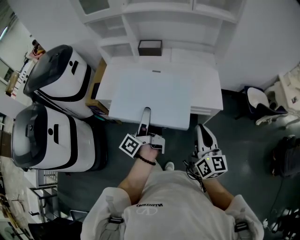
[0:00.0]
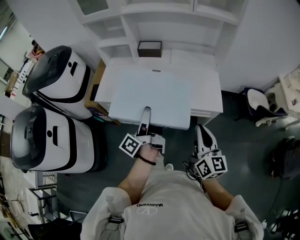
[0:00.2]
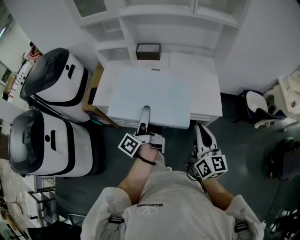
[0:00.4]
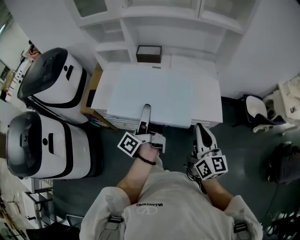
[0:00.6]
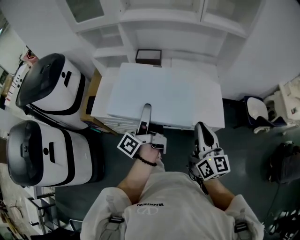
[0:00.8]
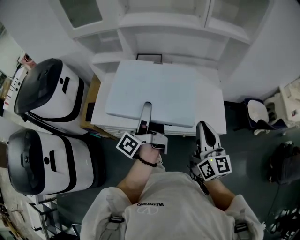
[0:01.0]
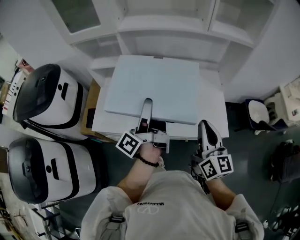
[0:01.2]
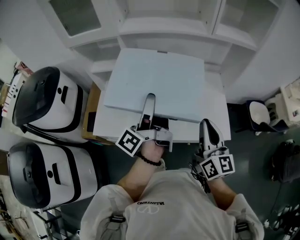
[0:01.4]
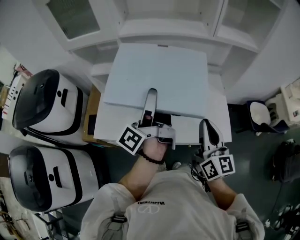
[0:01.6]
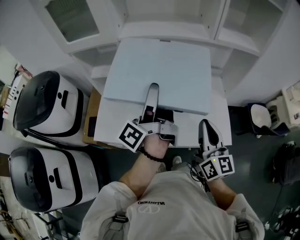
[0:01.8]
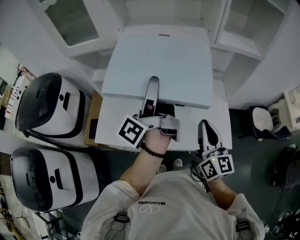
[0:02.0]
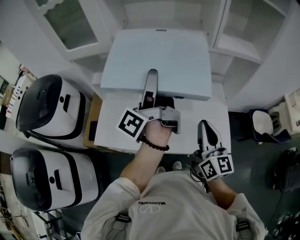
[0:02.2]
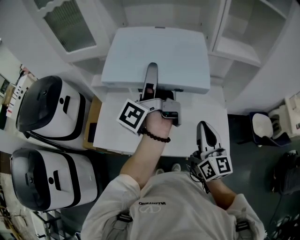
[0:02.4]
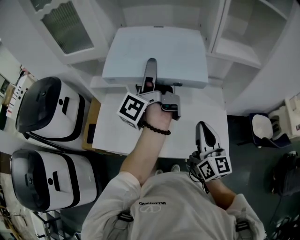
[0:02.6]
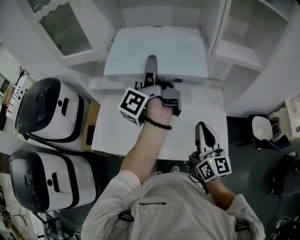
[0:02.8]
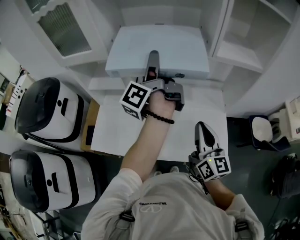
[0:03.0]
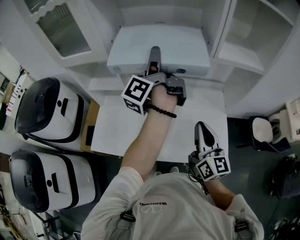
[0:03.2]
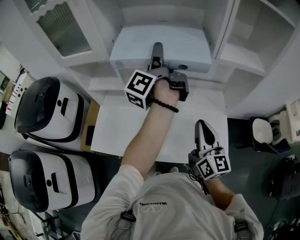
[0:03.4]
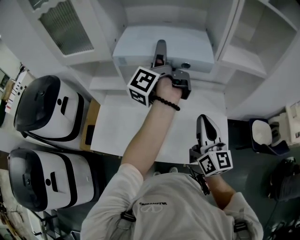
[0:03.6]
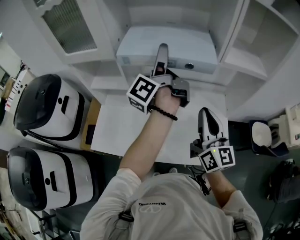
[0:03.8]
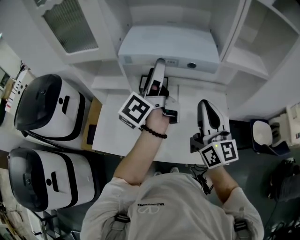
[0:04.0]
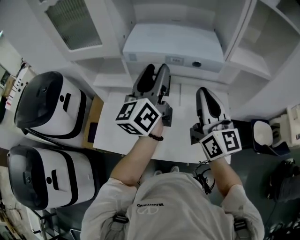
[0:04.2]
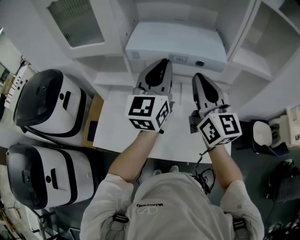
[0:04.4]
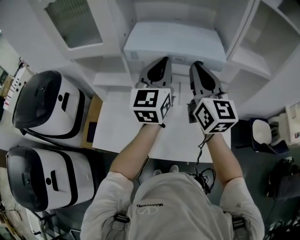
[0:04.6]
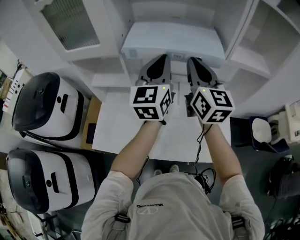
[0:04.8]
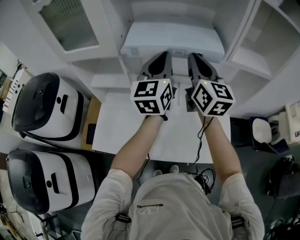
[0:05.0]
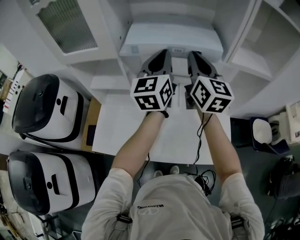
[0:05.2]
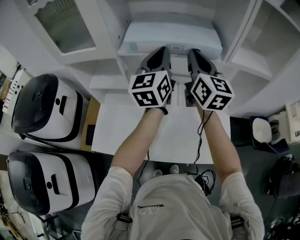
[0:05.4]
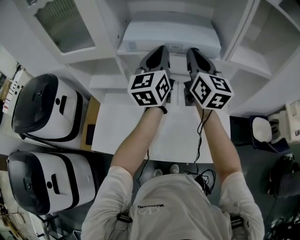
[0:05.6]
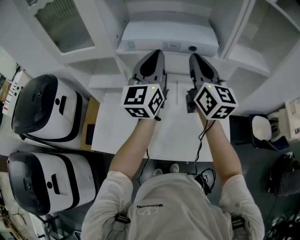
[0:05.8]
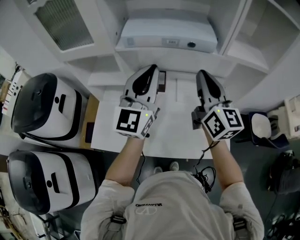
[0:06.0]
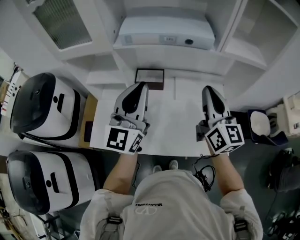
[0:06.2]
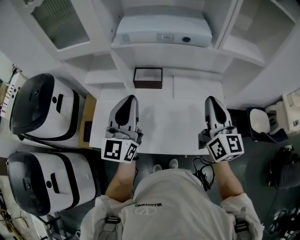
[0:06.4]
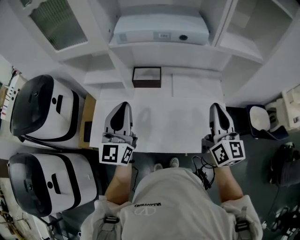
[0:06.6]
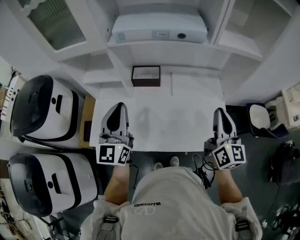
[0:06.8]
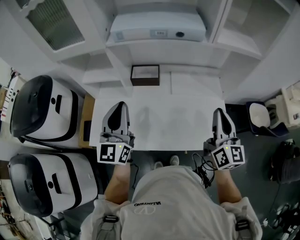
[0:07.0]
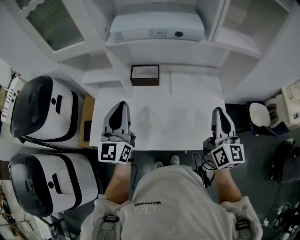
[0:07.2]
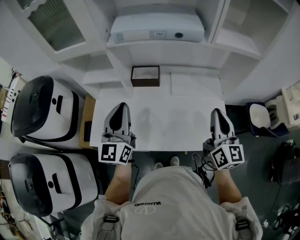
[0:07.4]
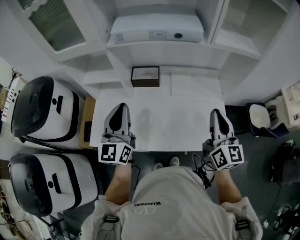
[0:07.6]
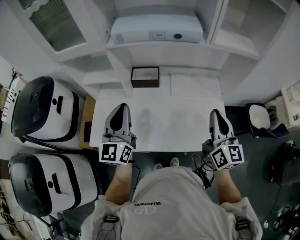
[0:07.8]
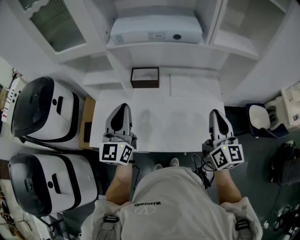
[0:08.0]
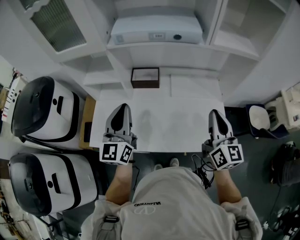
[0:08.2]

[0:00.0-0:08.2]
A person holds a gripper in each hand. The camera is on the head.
0:00.0 to 0:01.6: The right gripper shifts about 25 cm forward, while the left gripper moves forward and upward, about 30 cm.
0:01.6 to 0:03.2: The left gripper is displaced forward by about 20 cm. Meanwhile the right gripper travels forward by about 10 cm.
0:03.2 to 0:05.0: The left gripper goes backward and returns, approximately 5 cm each way, rotates around the line of its fingers by about 70 degrees, clockwise from behind, and closes its fingers. The right gripper moves forward and upward, roughly 25 cm.
0:05.0 to 0:06.6: The right gripper moves backward, to the right and downward, approximately 25 cm; the left gripper is displaced backward, to the left and downward by roughly 20 cm.
0:06.6 to 0:08.2: The grippers stay close to where they were, moving slightly.

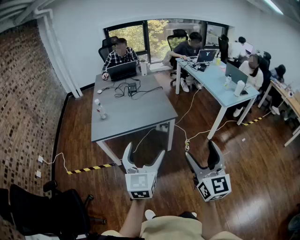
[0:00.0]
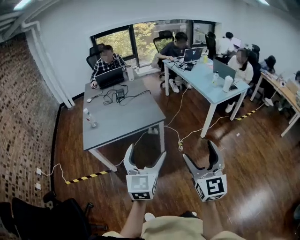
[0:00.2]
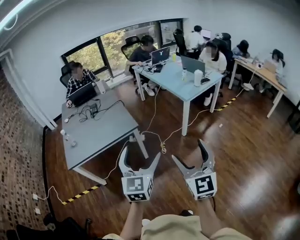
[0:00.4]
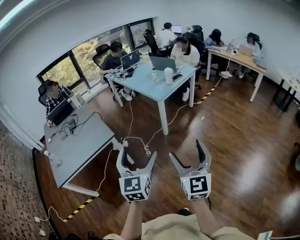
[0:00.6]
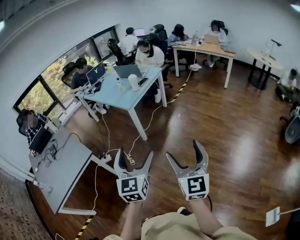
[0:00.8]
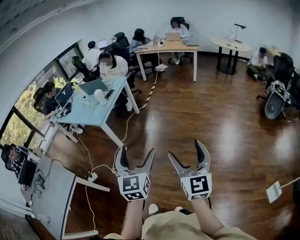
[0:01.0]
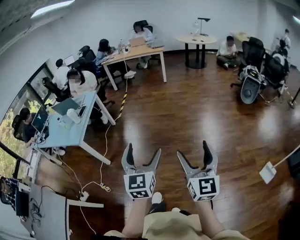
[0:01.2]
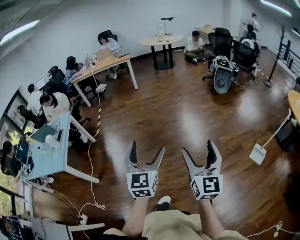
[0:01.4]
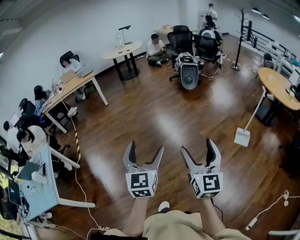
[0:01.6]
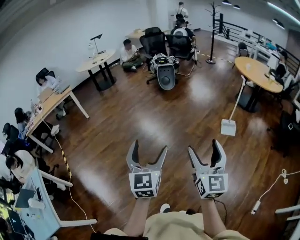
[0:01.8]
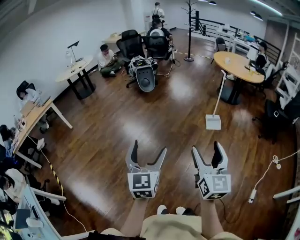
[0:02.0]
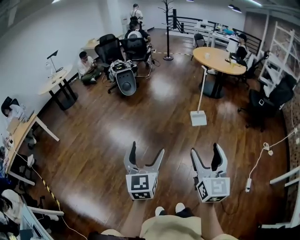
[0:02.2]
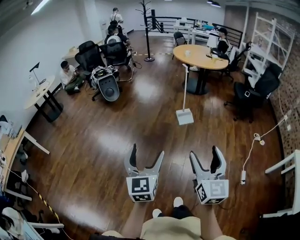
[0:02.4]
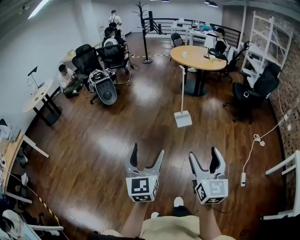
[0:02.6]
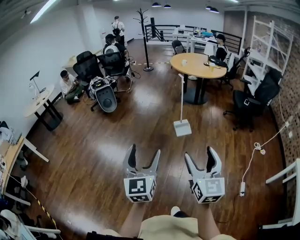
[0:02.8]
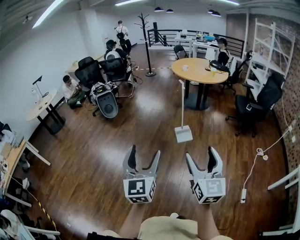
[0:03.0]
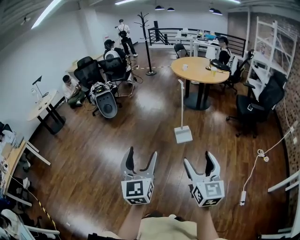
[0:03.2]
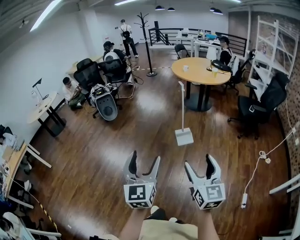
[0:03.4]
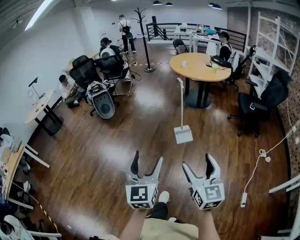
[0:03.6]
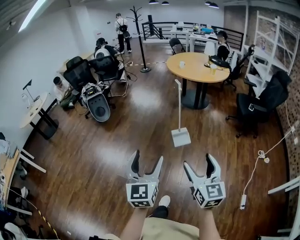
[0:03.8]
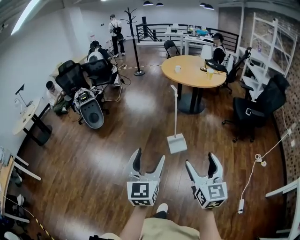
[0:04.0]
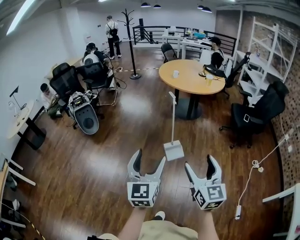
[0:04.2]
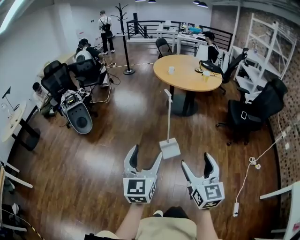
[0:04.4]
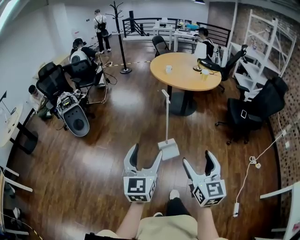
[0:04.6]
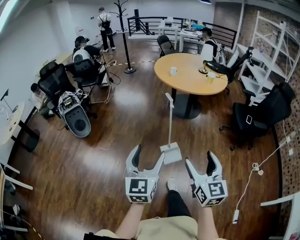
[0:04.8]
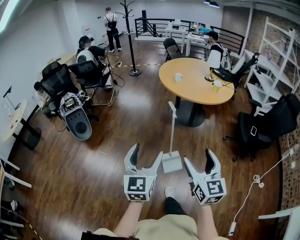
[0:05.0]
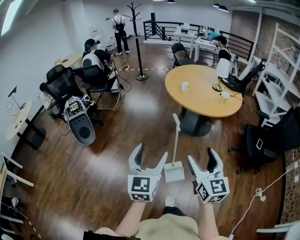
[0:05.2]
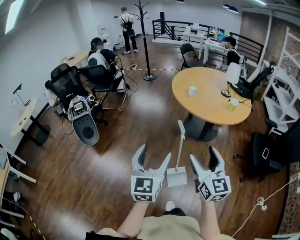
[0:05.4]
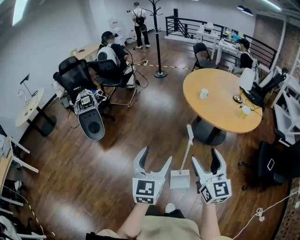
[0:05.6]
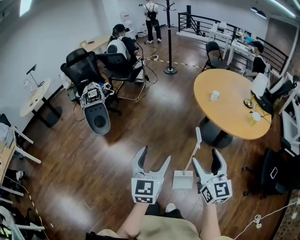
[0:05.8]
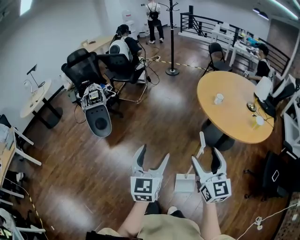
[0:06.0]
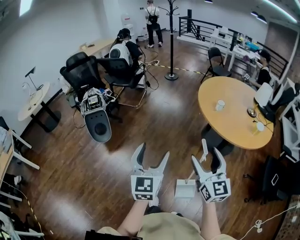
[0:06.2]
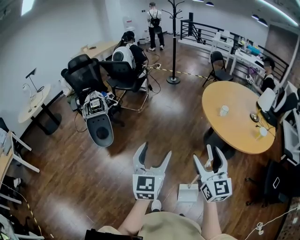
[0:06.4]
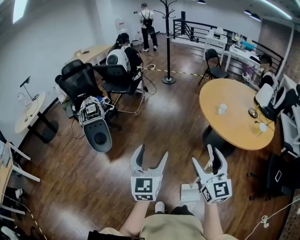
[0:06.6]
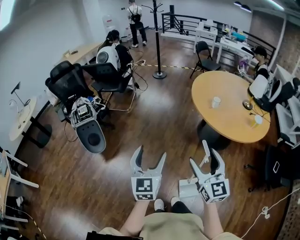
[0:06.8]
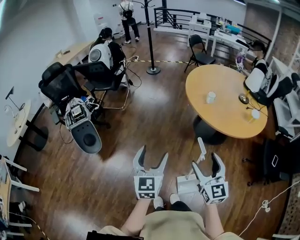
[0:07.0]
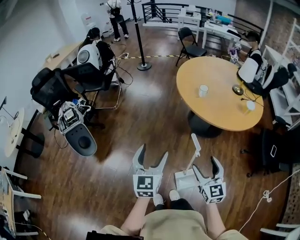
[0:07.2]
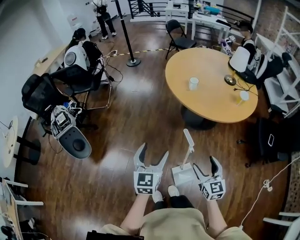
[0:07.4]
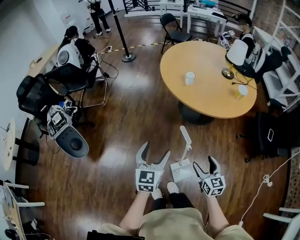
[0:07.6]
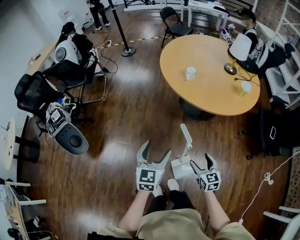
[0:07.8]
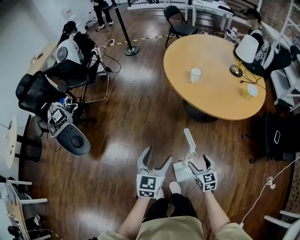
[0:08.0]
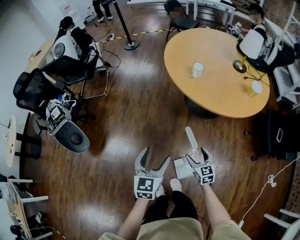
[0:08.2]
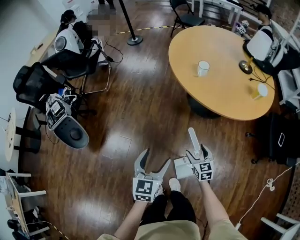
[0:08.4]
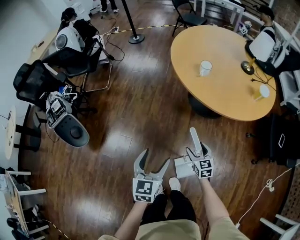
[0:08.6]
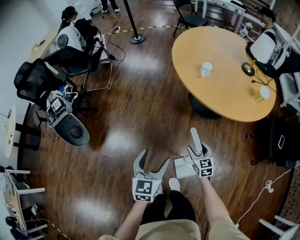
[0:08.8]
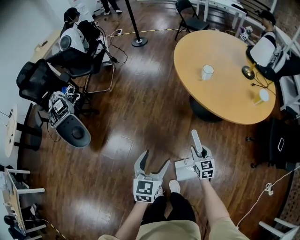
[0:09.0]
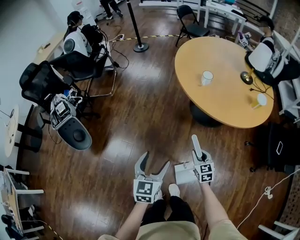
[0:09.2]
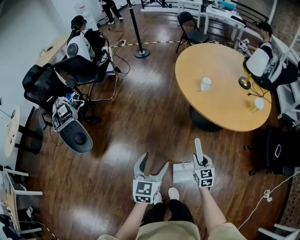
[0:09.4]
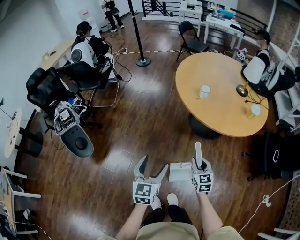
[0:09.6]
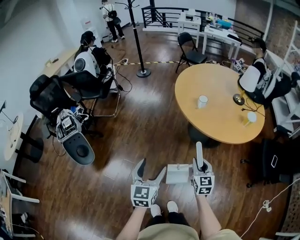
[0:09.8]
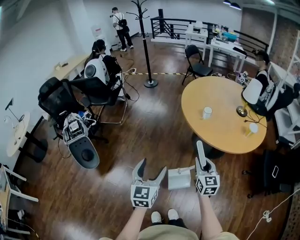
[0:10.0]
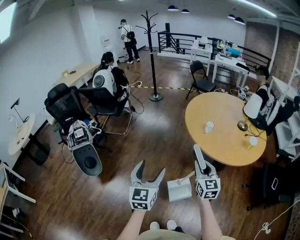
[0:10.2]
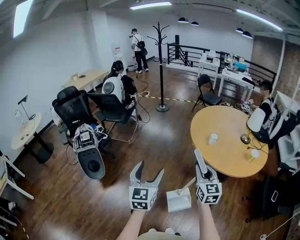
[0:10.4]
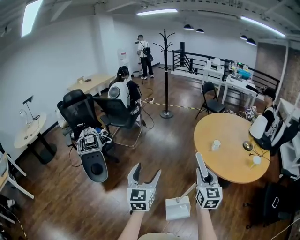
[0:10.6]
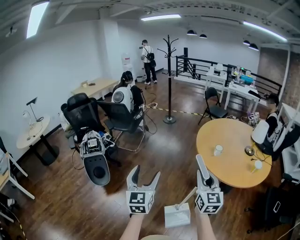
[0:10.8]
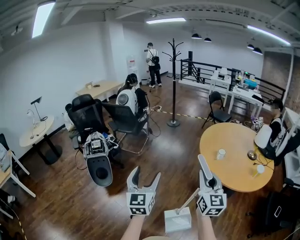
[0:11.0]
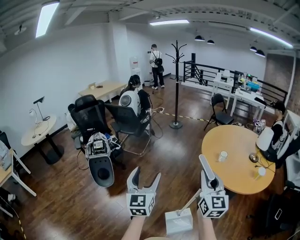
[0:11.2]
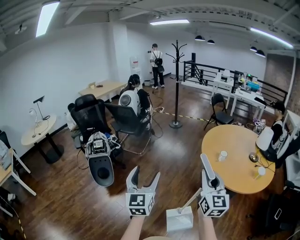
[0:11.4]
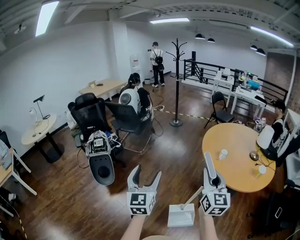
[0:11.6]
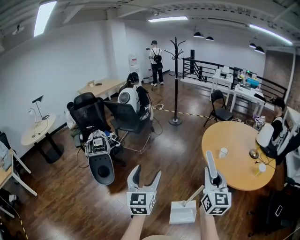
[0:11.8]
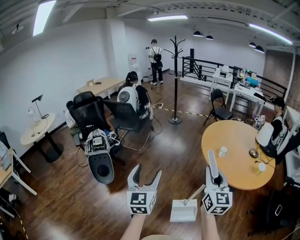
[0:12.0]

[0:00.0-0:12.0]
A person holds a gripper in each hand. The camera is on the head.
0:00.0 to 0:01.6: Both grippers are carried roughly 80 cm. The right gripper rotates roughly 110 degrees, while the left gripper turns by roughly 100 degrees.
0:01.6 to 0:03.0: The left gripper changes place by about 35 cm, and turns by about 40 degrees, while the right gripper shifts by about 35 cm, and swivels approximately 40 degrees.
0:03.0 to 0:04.4: The grippers both shift forward by about 35 cm.
0:04.4 to 0:06.0: The pair of grippers is taken forward, some 50 cm. The right gripper changes its angle by about 20 degrees.
0:06.0 to 0:07.6: The right gripper travels downward and to the right by about 25 cm, and turns by roughly 30 degrees. The left gripper is displaced forward, downward and to the right by about 25 cm, and rotates roughly 30 degrees.
0:07.6 to 0:09.0: The right gripper is displaced forward and downward by about 20 cm, and closes up; the left gripper moves downward, some 5 cm.
0:09.0 to 0:10.4: The left gripper shifts roughly 25 cm upward and to the left, and turns by approximately 20 degrees. Meanwhile the right gripper goes roughly 35 cm upward, and swivels about 20 degrees.
0:10.4 to 0:12.0: The right gripper shifts approximately 10 cm upward. Meanwhile the left gripper travels to the left by some 5 cm.

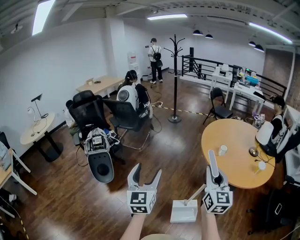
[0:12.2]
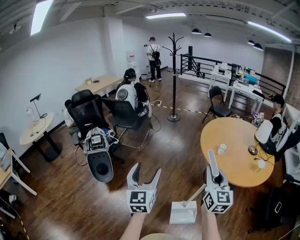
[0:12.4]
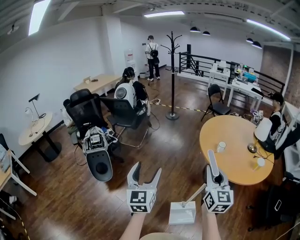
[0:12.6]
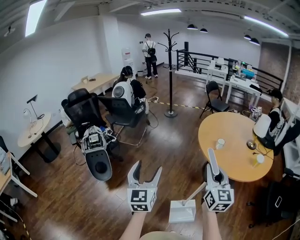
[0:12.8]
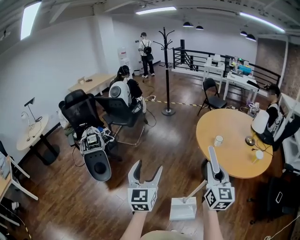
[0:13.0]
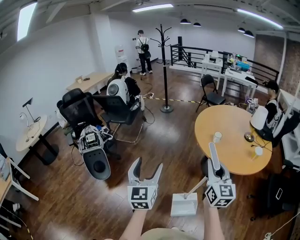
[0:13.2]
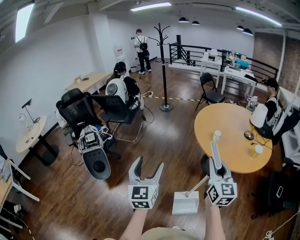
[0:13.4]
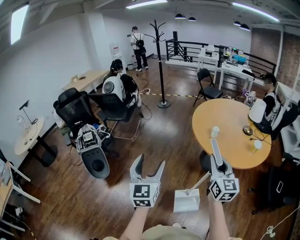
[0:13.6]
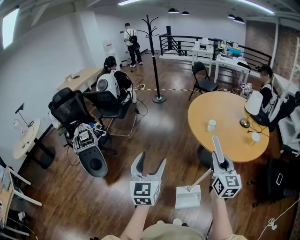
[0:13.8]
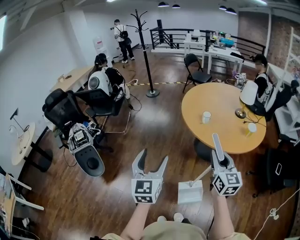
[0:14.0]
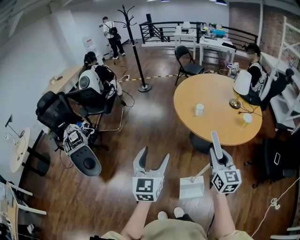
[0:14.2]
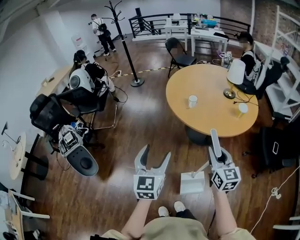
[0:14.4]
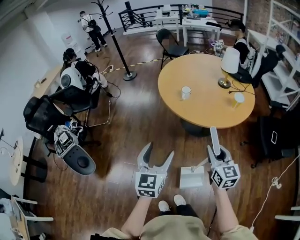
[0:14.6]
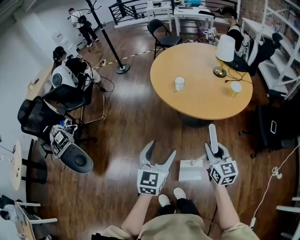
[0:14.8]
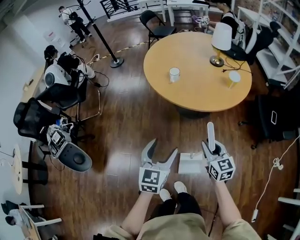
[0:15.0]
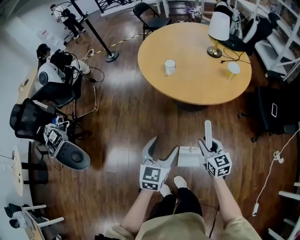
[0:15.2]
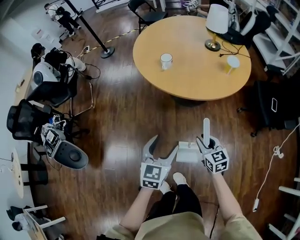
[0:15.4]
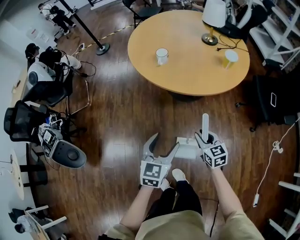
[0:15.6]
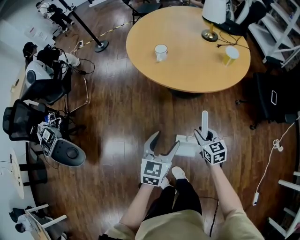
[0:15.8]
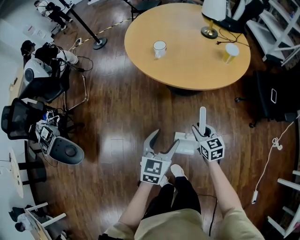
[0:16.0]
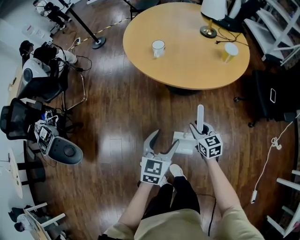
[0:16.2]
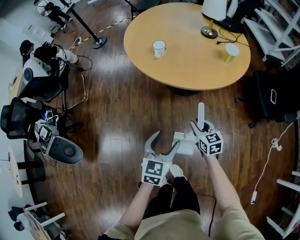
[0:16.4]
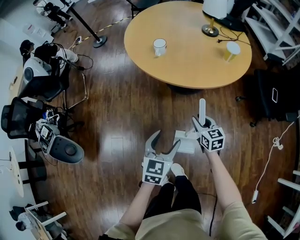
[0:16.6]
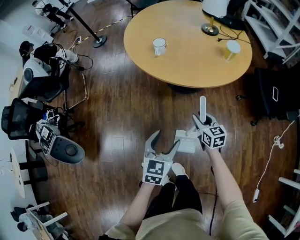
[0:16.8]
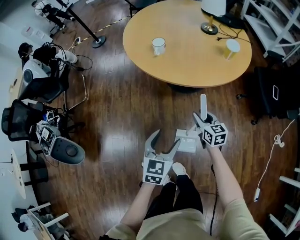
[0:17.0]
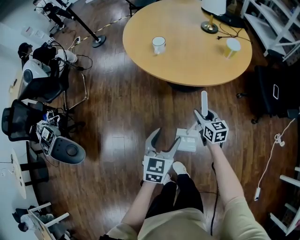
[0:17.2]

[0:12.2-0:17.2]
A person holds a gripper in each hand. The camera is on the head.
0:12.2 to 0:13.8: The right gripper goes approximately 10 cm to the right and downward. Meanwhile the left gripper heads to the right, covering some 10 cm.
0:13.8 to 0:15.6: Both grippers move downward and to the right, roughly 35 cm. The right gripper swivels roughly 30 degrees. Meanwhile the left gripper turns by approximately 40 degrees.
0:15.6 to 0:17.2: The right gripper moves forward, some 10 cm.
